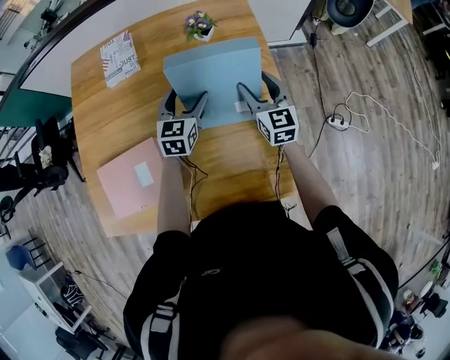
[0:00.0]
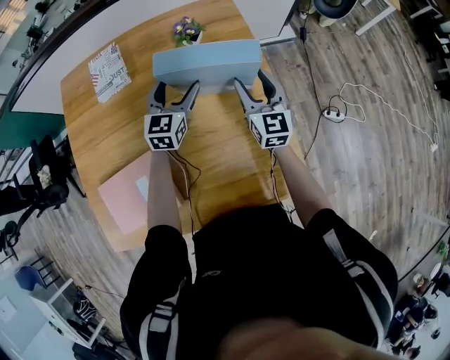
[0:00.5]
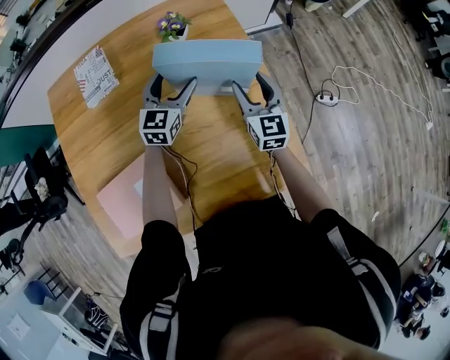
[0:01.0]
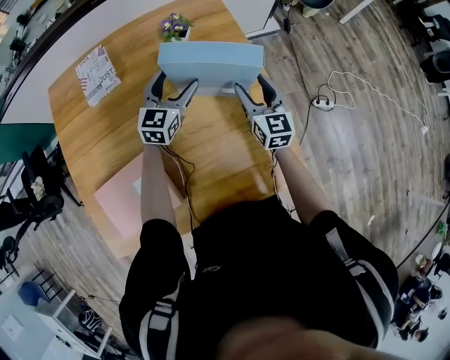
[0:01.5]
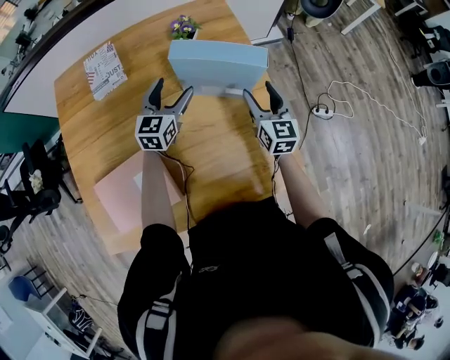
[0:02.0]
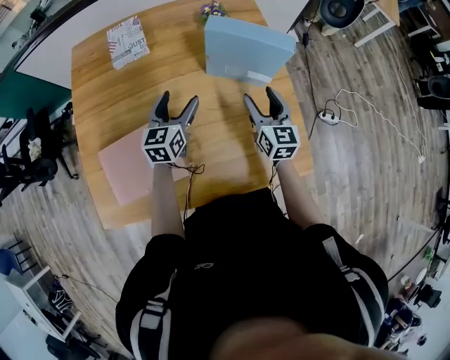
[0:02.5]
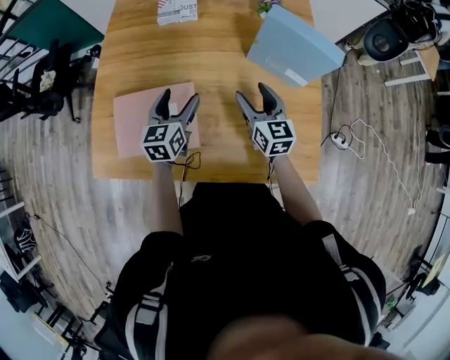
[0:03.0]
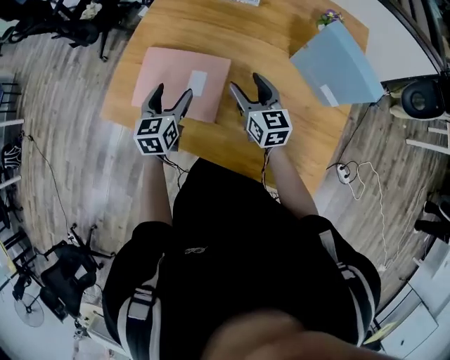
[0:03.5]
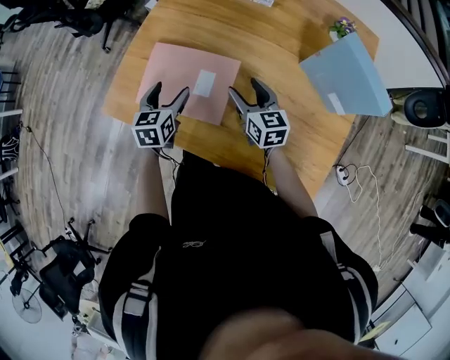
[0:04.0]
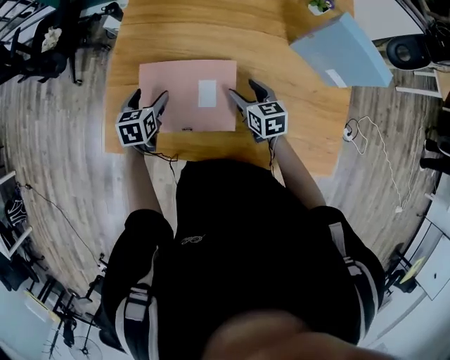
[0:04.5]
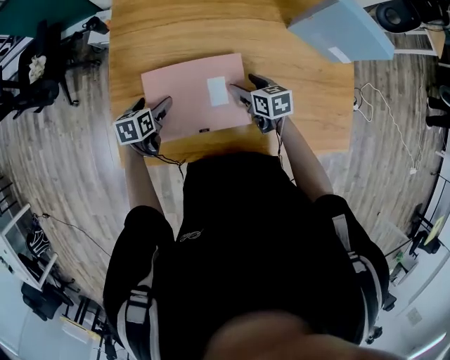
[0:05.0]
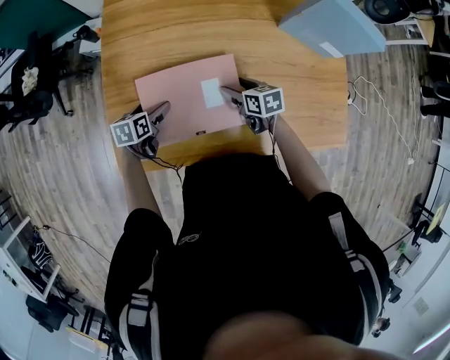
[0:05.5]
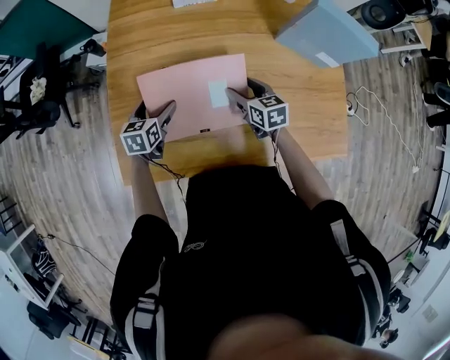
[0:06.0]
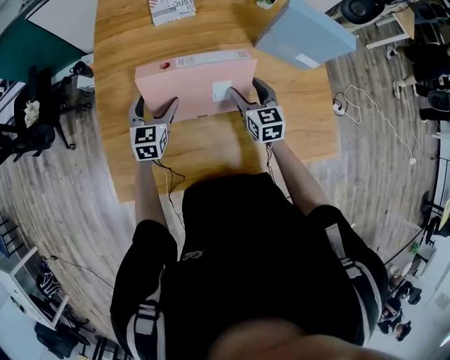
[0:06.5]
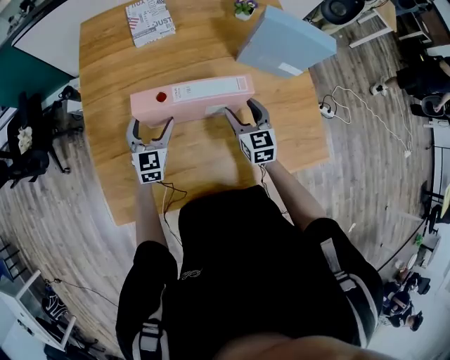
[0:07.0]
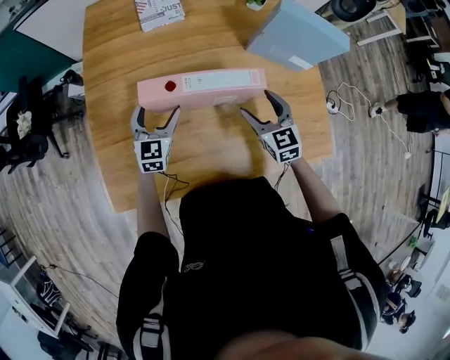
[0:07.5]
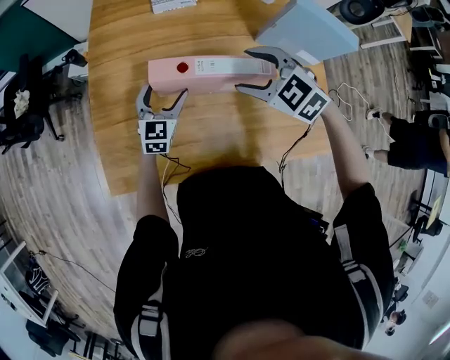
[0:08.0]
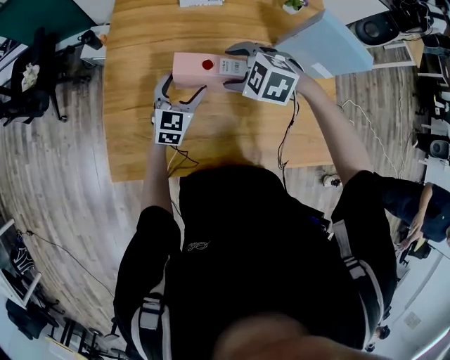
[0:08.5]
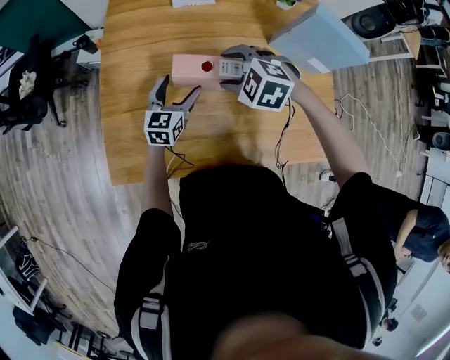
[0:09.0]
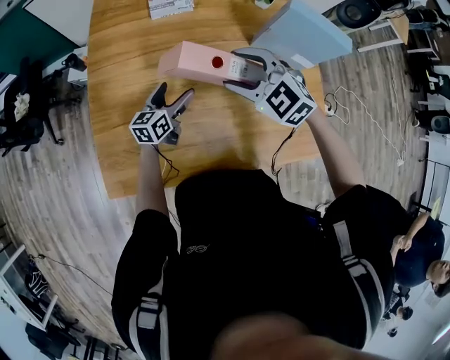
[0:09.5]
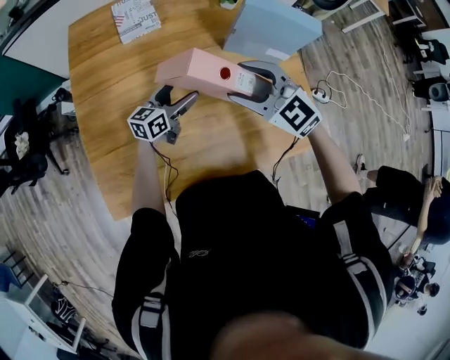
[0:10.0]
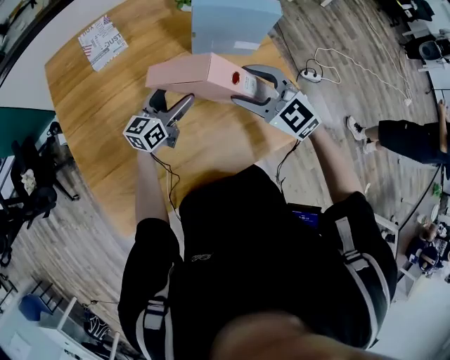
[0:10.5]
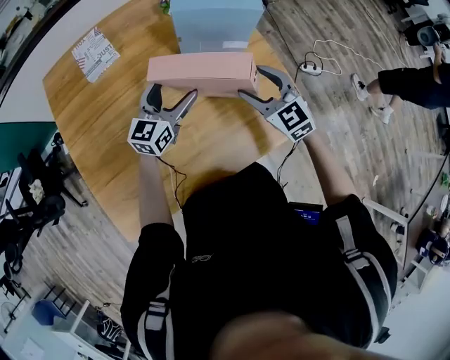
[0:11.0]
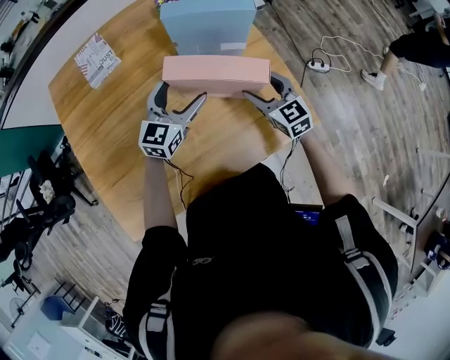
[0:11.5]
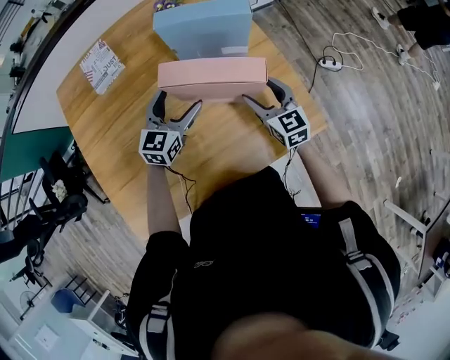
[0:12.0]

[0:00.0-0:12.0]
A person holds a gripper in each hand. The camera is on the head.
0:00.0 to 0:02.0: The right gripper moves about 5 cm.
0:02.0 to 0:04.0: The right gripper changes place by approximately 40 cm, and turns by some 50 degrees. The left gripper changes place by some 40 cm, and changes its angle by about 50 degrees.
0:04.0 to 0:06.0: The right gripper shifts roughly 5 cm downward, and swivels approximately 30 degrees, while the left gripper shifts by approximately 15 cm, and swivels approximately 30 degrees.
0:06.0 to 0:08.0: The left gripper travels to the right and upward by some 10 cm, and turns by some 30 degrees; the right gripper heads upward, covering about 15 cm, and rolls counterclockwise, seen from behind, by approximately 50 degrees.
0:08.0 to 0:10.0: The left gripper travels to the right by some 15 cm, and changes its angle by approximately 40 degrees. The right gripper heads to the right, covering roughly 5 cm, and rotates some 20 degrees.
0:10.0 to 0:12.0: The right gripper travels to the right and downward by about 25 cm, and turns by roughly 50 degrees; the left gripper goes about 15 cm to the right, and changes its angle by some 30 degrees.

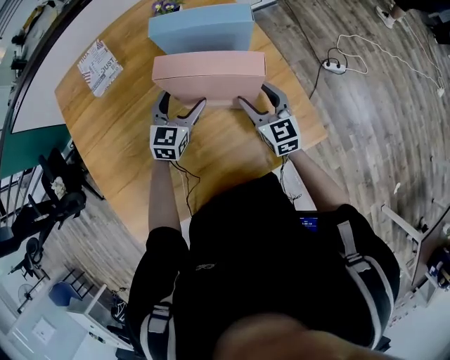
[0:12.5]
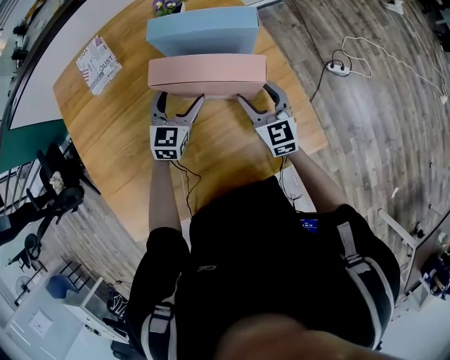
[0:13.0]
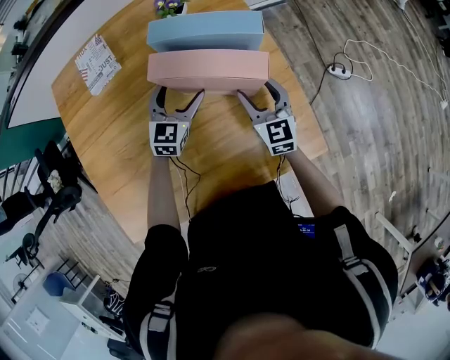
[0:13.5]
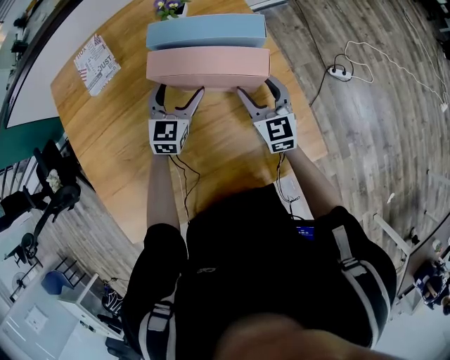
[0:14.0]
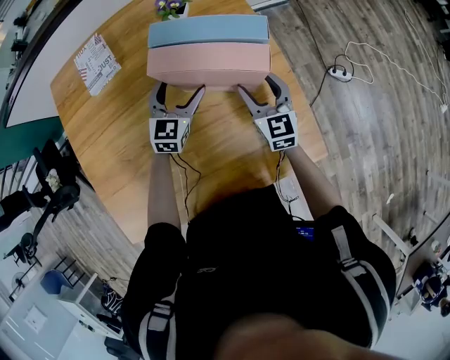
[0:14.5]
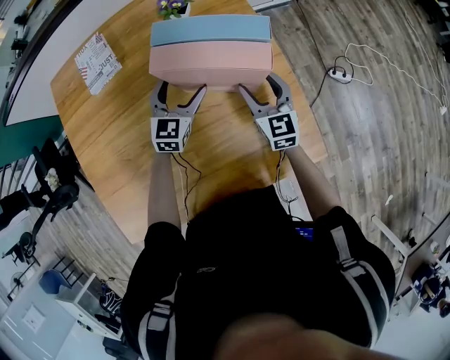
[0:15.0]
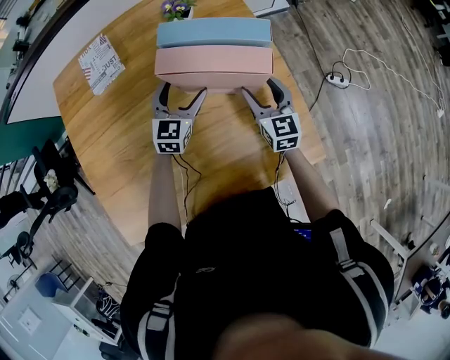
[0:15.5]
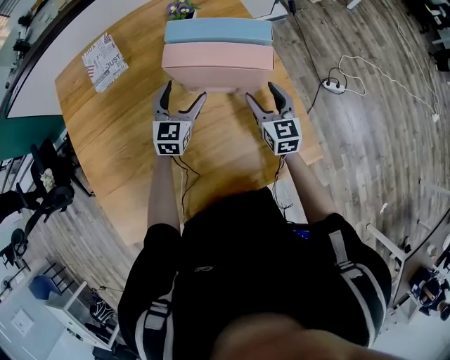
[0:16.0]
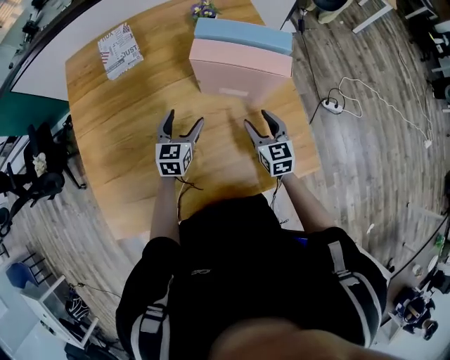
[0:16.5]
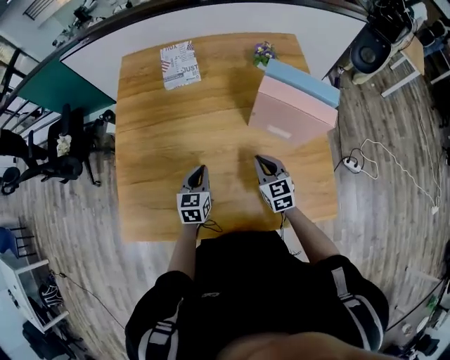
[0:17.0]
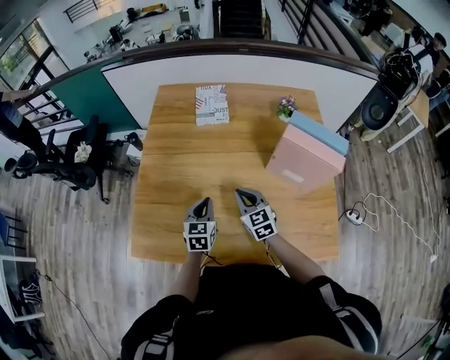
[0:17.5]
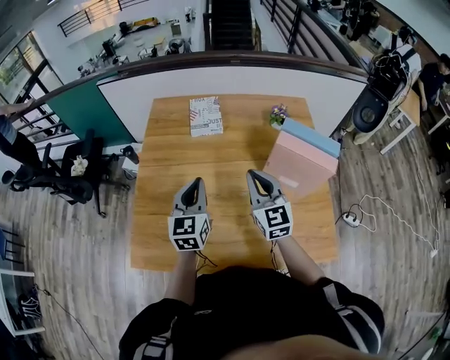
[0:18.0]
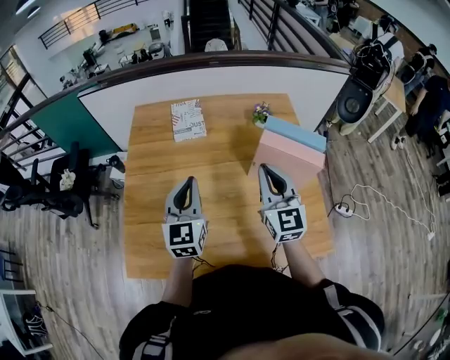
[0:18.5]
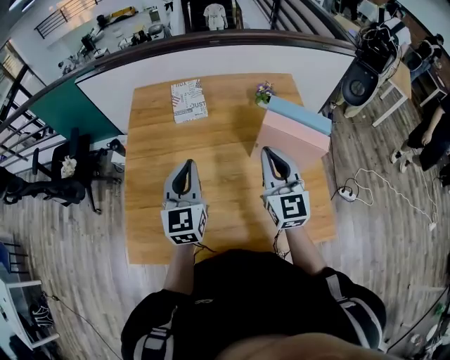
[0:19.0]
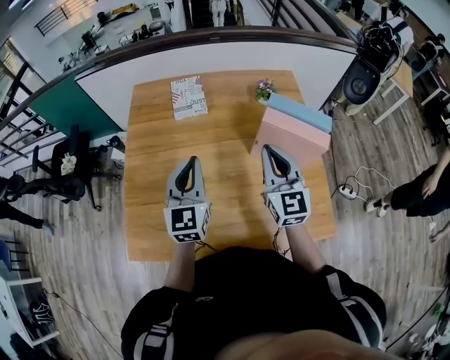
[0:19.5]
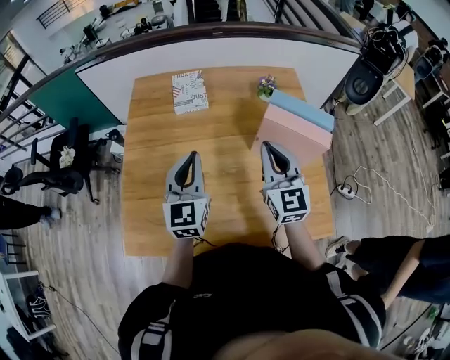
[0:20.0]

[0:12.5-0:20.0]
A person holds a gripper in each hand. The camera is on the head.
0:12.5 to 0:14.5: The grippers both shift forward by approximately 10 cm.
0:14.5 to 0:16.5: The left gripper goes roughly 15 cm backward and to the left. The right gripper moves backward, approximately 10 cm.
0:16.5 to 0:18.0: The left gripper travels upward by approximately 20 cm, swivels approximately 30 degrees, and closes. The right gripper shifts by some 35 cm, changes its angle by roughly 30 degrees, and closes.
0:18.0 to 0:20.0: The left gripper moves about 5 cm. Meanwhile the right gripper travels to the right by roughly 5 cm.

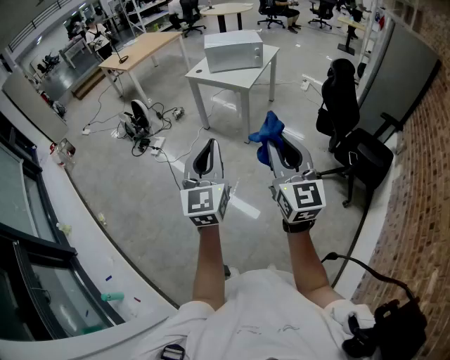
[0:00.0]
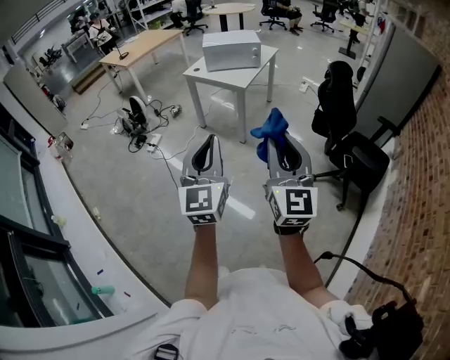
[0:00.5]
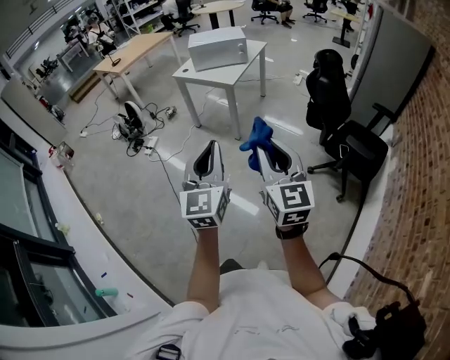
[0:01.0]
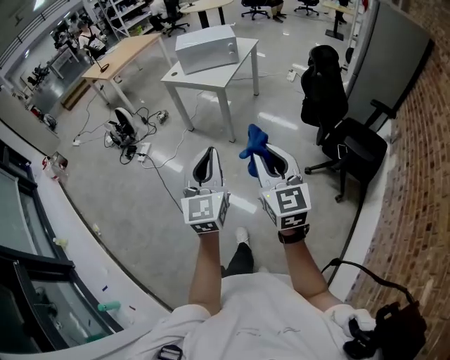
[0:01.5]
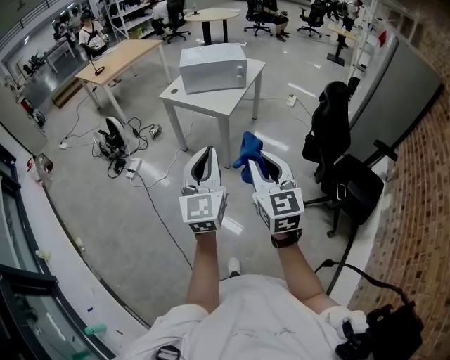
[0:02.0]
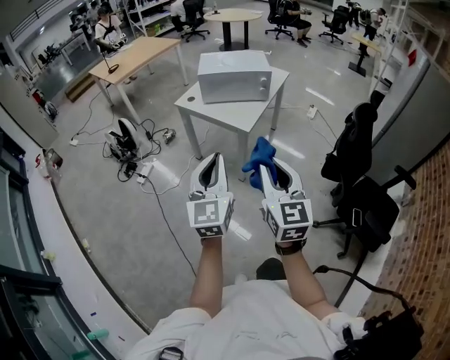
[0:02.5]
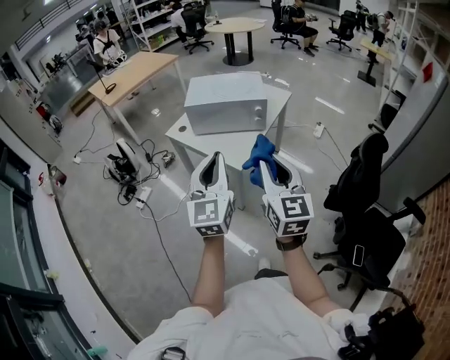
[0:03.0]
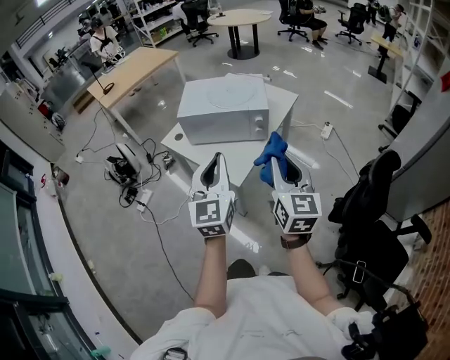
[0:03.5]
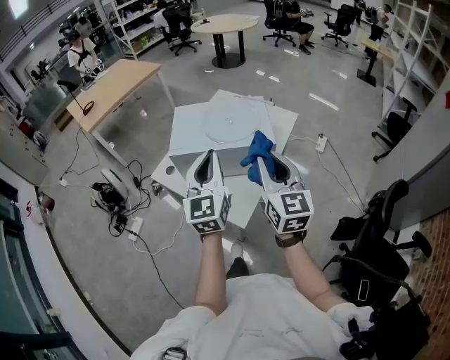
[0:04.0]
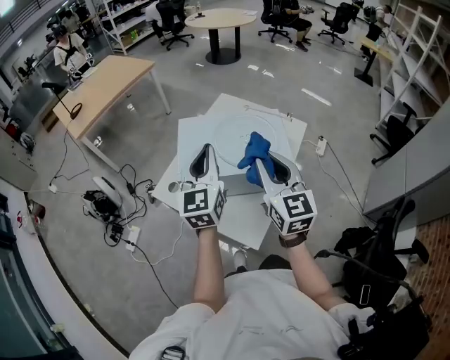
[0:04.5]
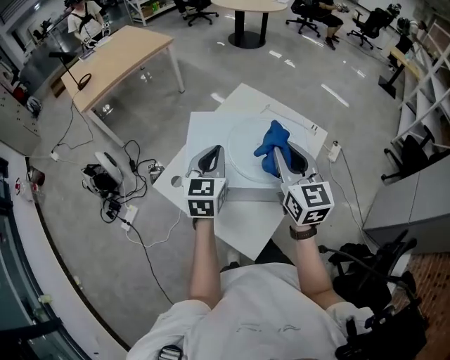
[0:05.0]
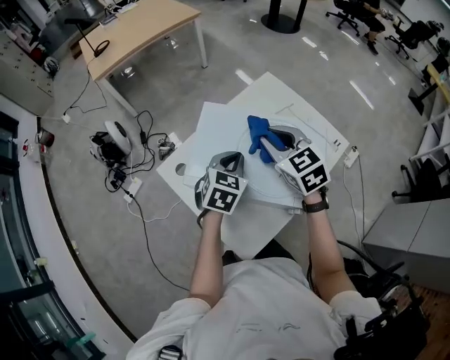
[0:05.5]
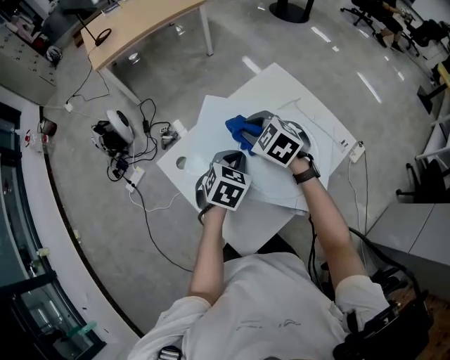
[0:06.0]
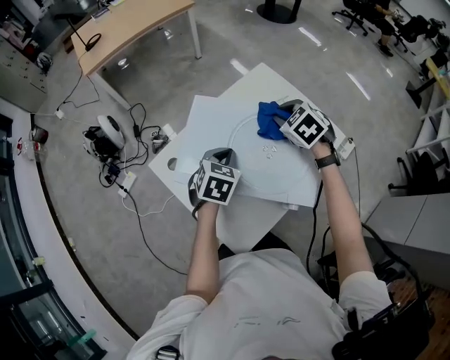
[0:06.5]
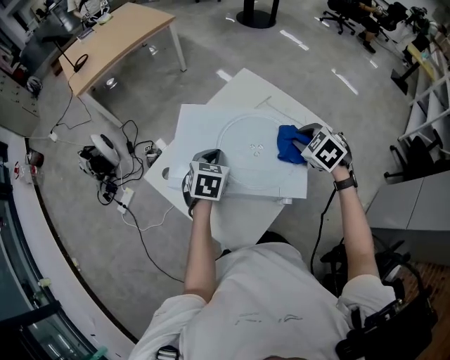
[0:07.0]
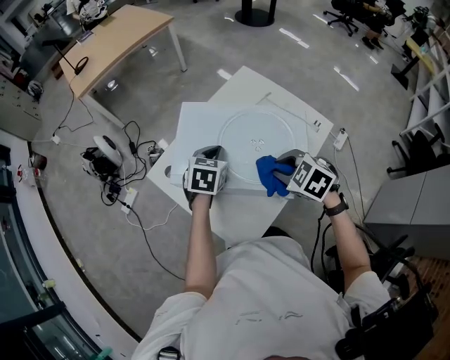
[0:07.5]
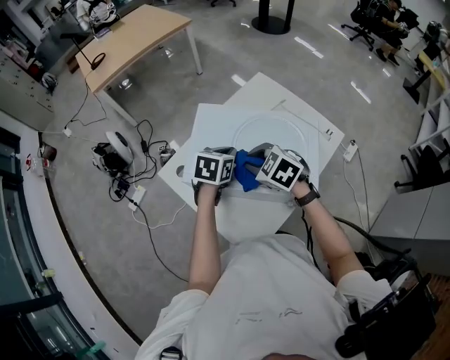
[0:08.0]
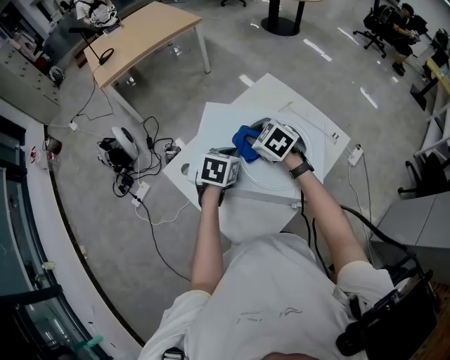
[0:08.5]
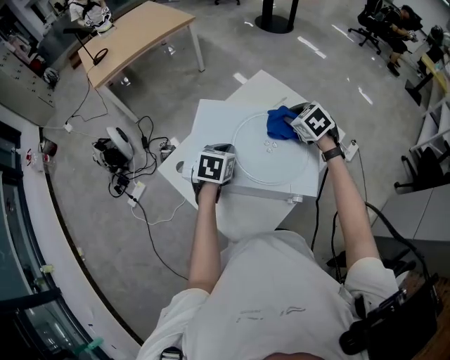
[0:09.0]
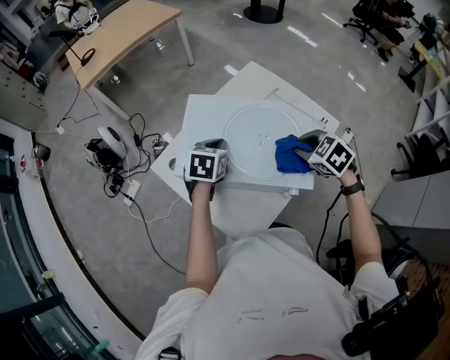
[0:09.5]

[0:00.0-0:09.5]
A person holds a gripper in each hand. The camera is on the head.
0:00.0 to 0:02.0: Both grippers move forward, some 20 cm.
0:02.0 to 0:04.0: The pair of grippers is taken forward, some 60 cm.
0:04.0 to 0:05.5: The left gripper shifts approximately 30 cm forward and downward, and tilts its fingers about 40 degrees downward. Meanwhile the right gripper moves forward, about 35 cm, and tilts its fingers approximately 30 degrees downward.
0:05.5 to 0:07.5: The right gripper swings left and right, roughly 20 cm each way, with 2 reversals, and swivels roughly 30 degrees.
0:07.5 to 0:09.5: The right gripper is displaced to the right by some 5 cm, and moves roughly 20 cm forward and comes back.
